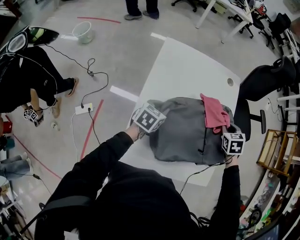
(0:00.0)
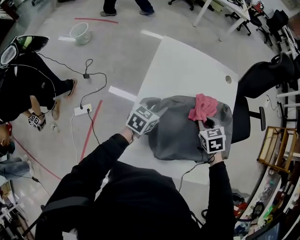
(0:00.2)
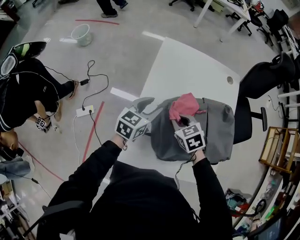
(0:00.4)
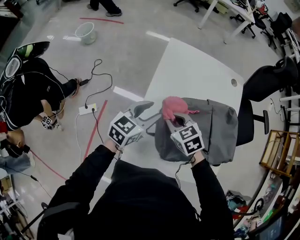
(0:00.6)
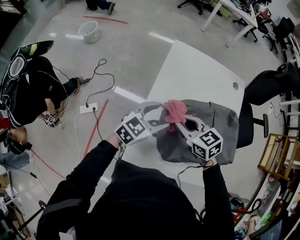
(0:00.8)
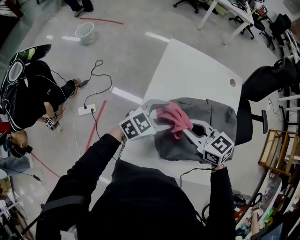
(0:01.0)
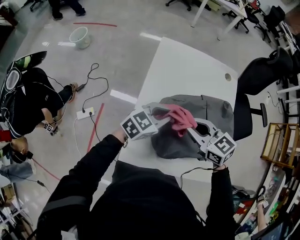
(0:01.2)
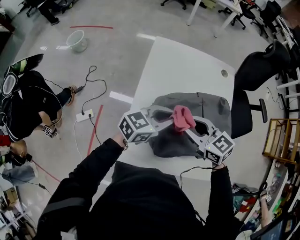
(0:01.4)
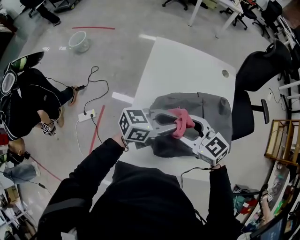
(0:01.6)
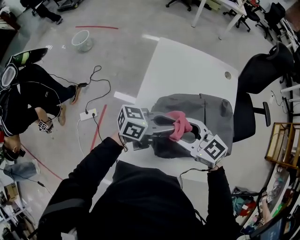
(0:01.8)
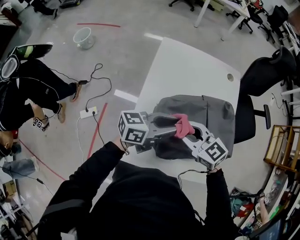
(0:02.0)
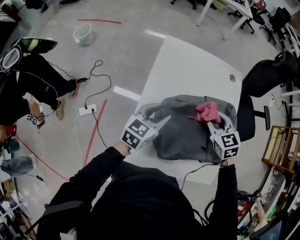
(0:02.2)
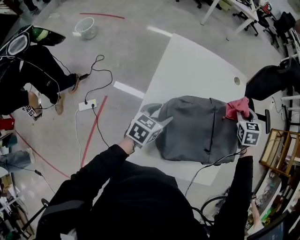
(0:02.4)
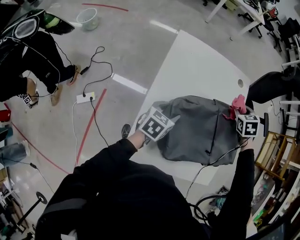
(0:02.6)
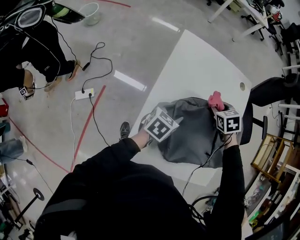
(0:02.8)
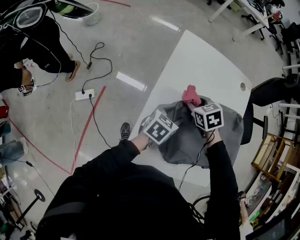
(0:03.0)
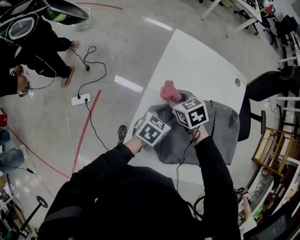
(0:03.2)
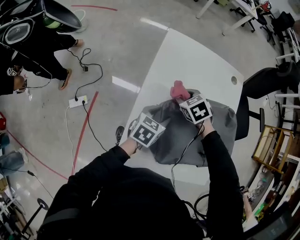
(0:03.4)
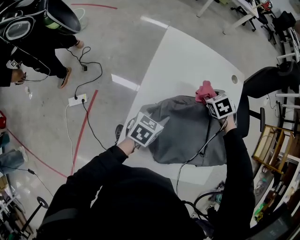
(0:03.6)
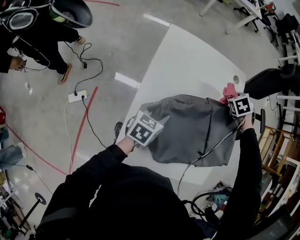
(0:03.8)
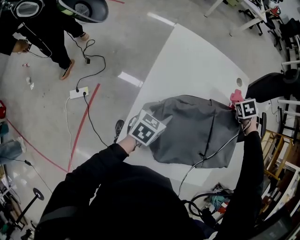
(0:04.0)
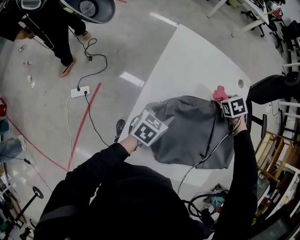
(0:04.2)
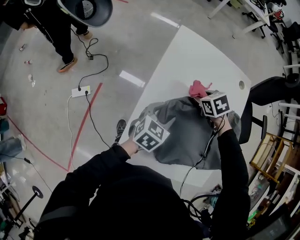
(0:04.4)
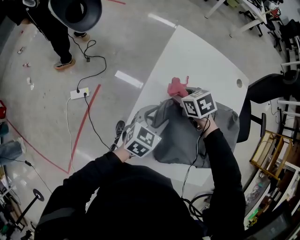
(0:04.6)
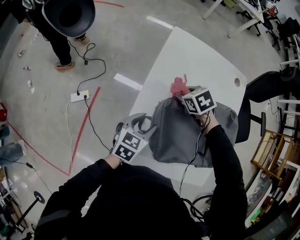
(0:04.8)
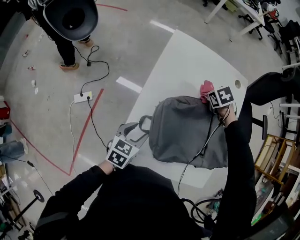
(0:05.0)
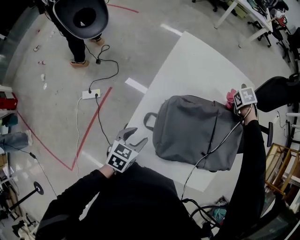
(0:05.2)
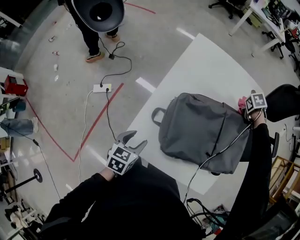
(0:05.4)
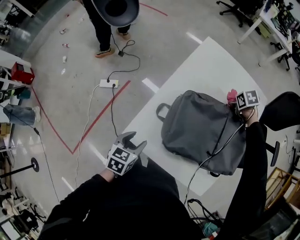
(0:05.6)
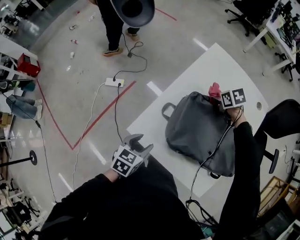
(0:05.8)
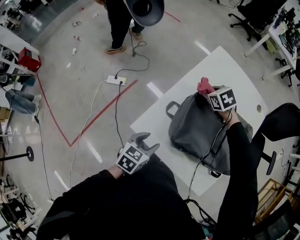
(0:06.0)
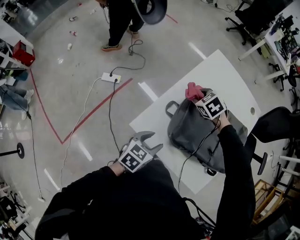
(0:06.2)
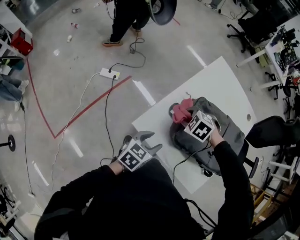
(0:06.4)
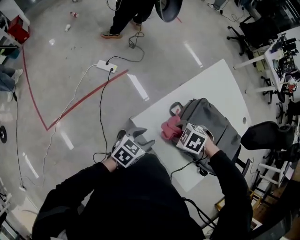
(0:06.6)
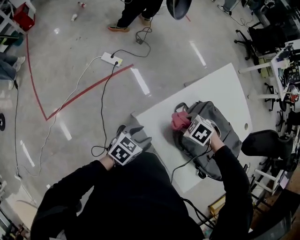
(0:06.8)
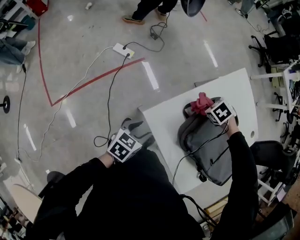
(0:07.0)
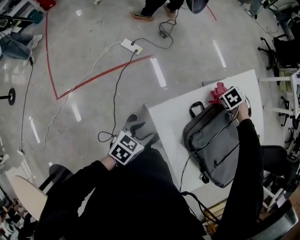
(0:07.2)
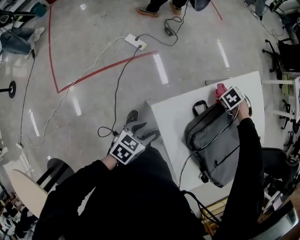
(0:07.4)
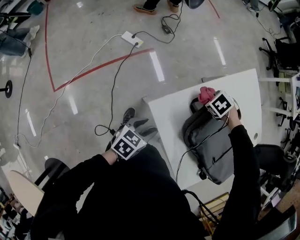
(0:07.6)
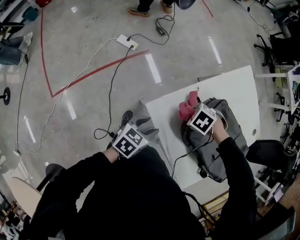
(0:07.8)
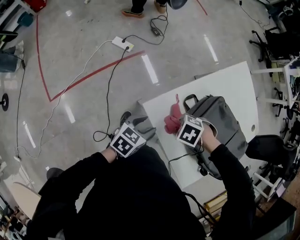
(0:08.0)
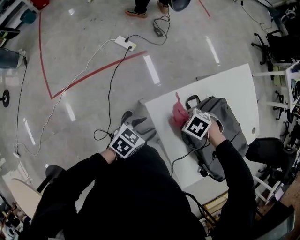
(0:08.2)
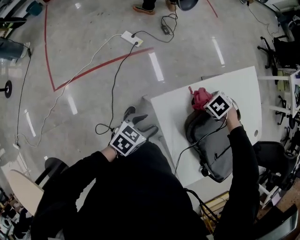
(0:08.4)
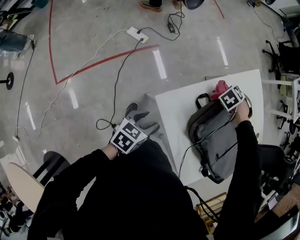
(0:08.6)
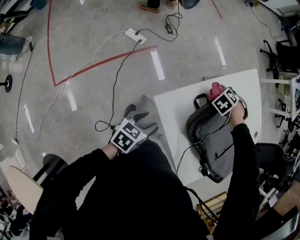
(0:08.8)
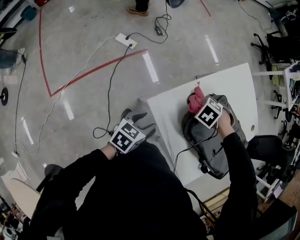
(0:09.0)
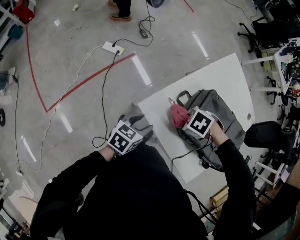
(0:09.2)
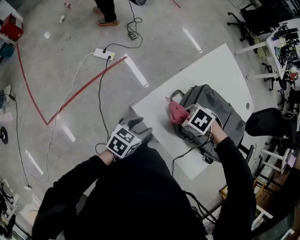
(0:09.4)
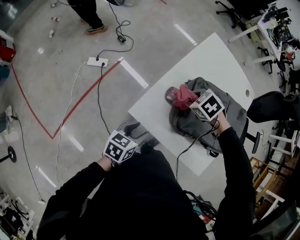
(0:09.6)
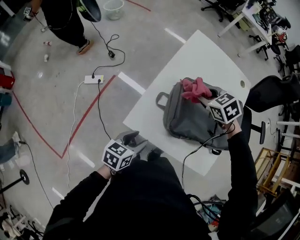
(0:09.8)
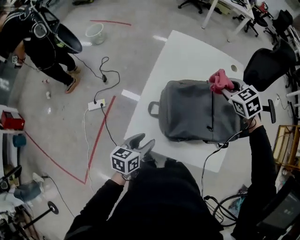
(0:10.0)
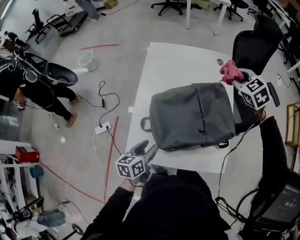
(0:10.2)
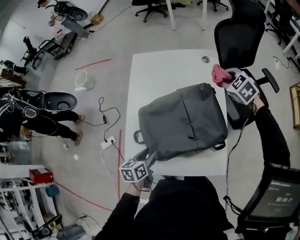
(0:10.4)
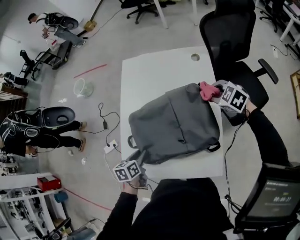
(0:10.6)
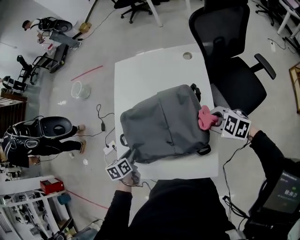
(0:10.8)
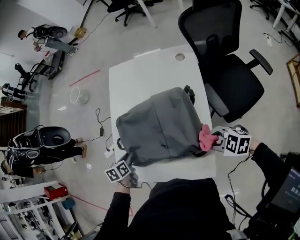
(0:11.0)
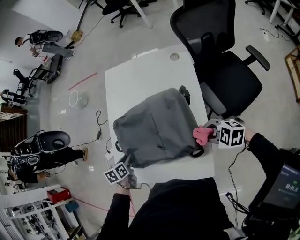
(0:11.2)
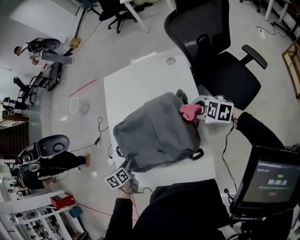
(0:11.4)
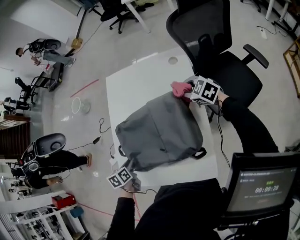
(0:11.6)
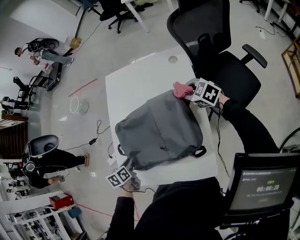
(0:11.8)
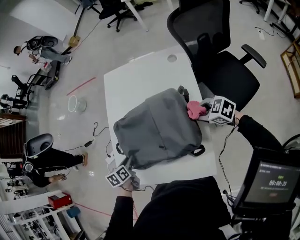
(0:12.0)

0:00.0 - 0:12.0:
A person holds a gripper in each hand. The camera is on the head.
0:00.0 - 0:01.6: The left gripper travels upward by approximately 15 cm, angles its fingers upward, by approximately 40 degrees, and opens, then closes once more, while the right gripper moves some 25 cm, tips its fingers upward by roughly 30 degrees, and opens up.
0:01.6 - 0:03.0: The left gripper heads downward, covering about 15 cm, angles its fingers downward, by roughly 30 degrees, and opens up; the right gripper changes place by about 20 cm, tips its fingers downward by approximately 30 degrees, and closes.
0:04.4 - 0:06.0: The right gripper changes its angle by approximately 20 degrees. The left gripper ends up some 30 cm from where it was, and changes its angle by about 30 degrees.
0:06.0 - 0:07.6: The right gripper angles its fingers downward, by about 30 degrees. The left gripper moves roughly 10 cm, and changes its angle by about 20 degrees.
0:09.0 - 0:10.4: The left gripper shifts by approximately 25 cm; the right gripper ends up some 50 cm from where it was, and angles its fingers upward, by roughly 40 degrees.
0:10.4 - 0:12.0: The left gripper ends up roughly 5 cm from where it was; the right gripper goes roughly 15 cm downward, and changes its angle by about 40 degrees.

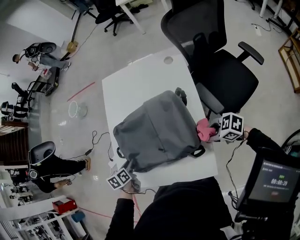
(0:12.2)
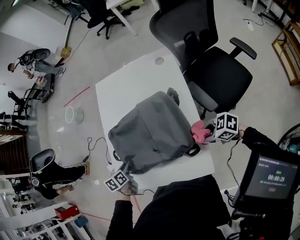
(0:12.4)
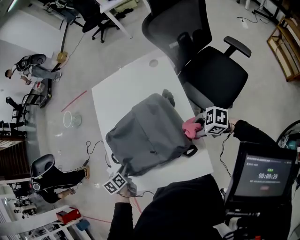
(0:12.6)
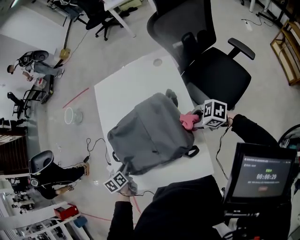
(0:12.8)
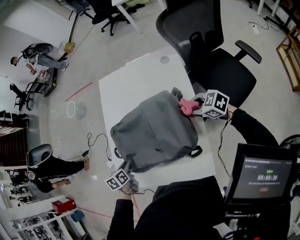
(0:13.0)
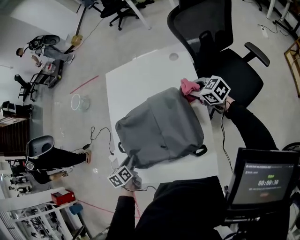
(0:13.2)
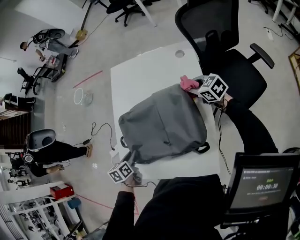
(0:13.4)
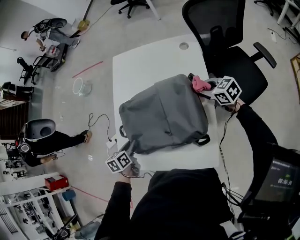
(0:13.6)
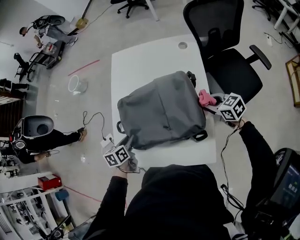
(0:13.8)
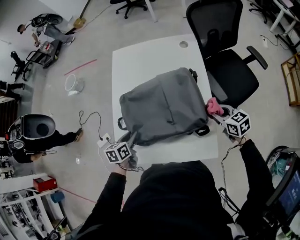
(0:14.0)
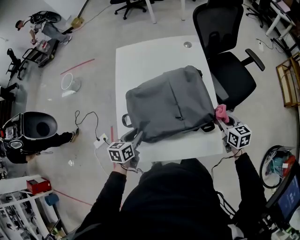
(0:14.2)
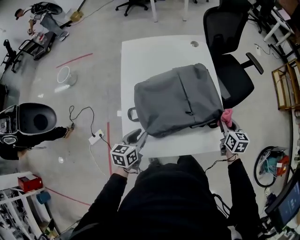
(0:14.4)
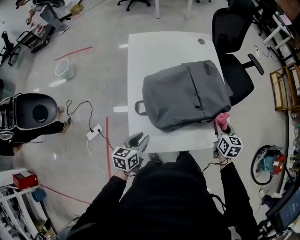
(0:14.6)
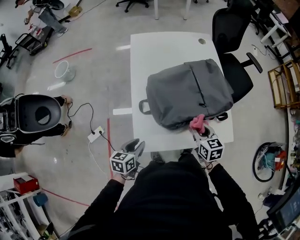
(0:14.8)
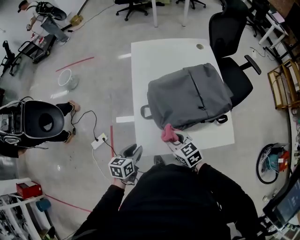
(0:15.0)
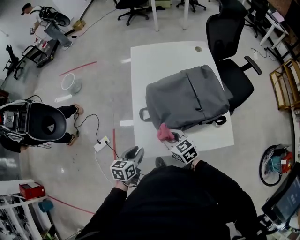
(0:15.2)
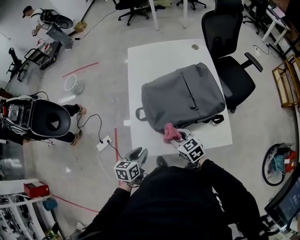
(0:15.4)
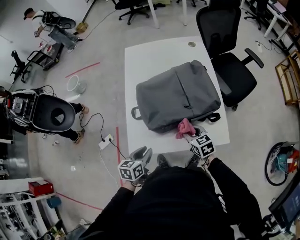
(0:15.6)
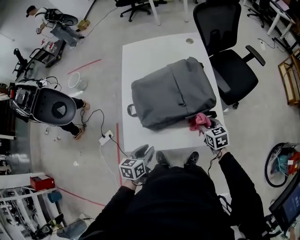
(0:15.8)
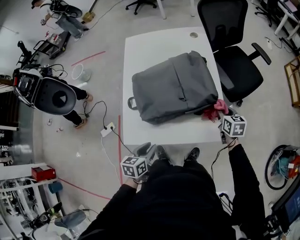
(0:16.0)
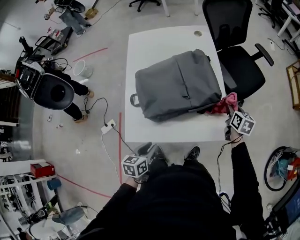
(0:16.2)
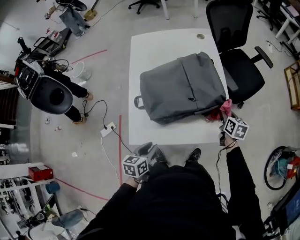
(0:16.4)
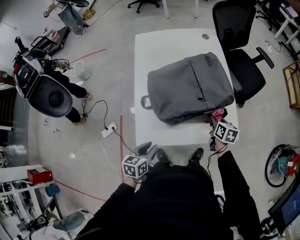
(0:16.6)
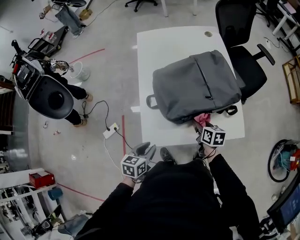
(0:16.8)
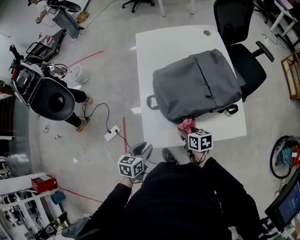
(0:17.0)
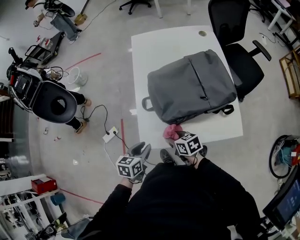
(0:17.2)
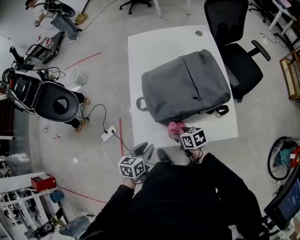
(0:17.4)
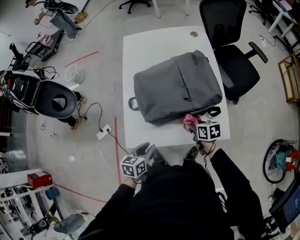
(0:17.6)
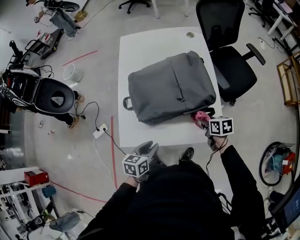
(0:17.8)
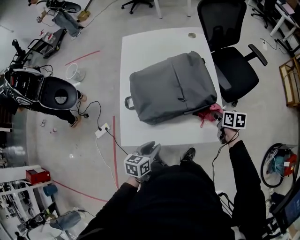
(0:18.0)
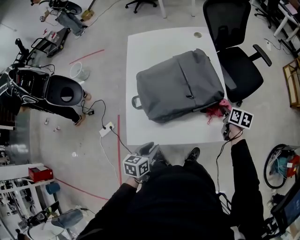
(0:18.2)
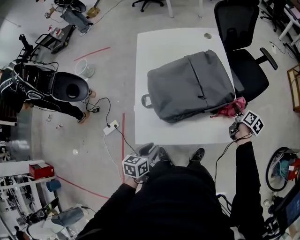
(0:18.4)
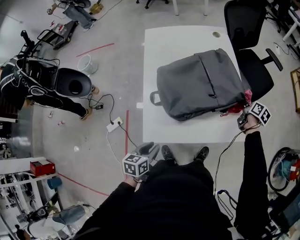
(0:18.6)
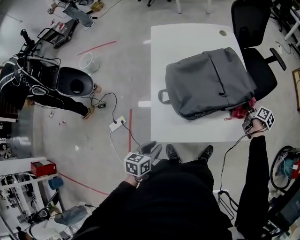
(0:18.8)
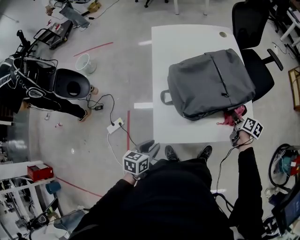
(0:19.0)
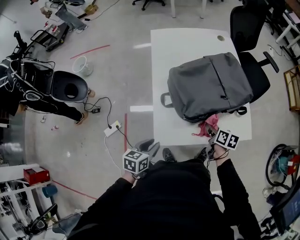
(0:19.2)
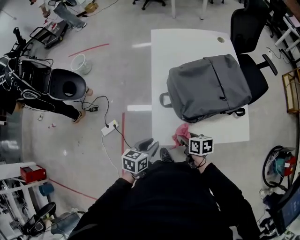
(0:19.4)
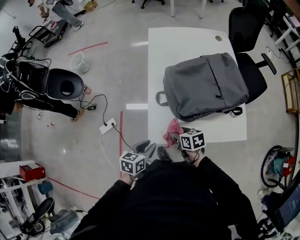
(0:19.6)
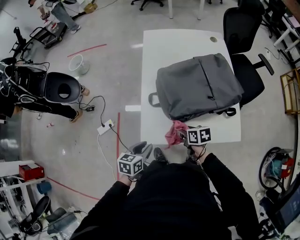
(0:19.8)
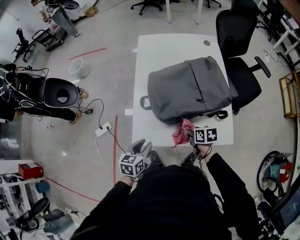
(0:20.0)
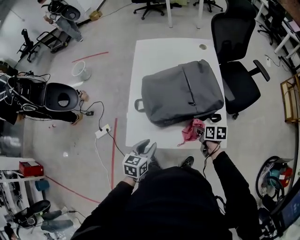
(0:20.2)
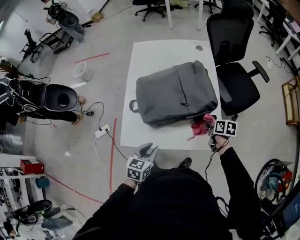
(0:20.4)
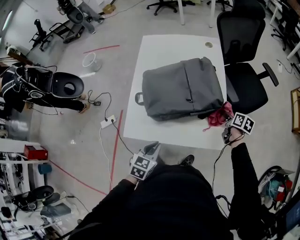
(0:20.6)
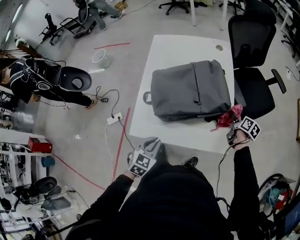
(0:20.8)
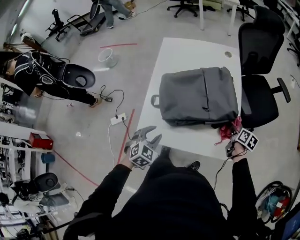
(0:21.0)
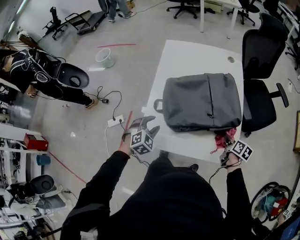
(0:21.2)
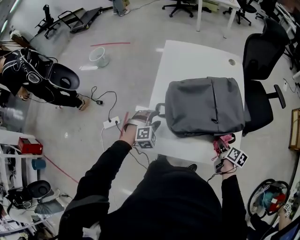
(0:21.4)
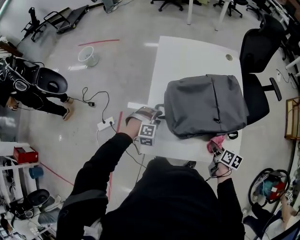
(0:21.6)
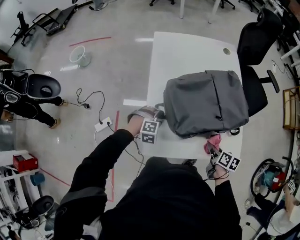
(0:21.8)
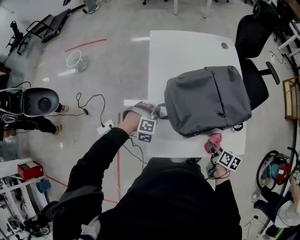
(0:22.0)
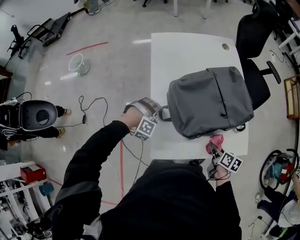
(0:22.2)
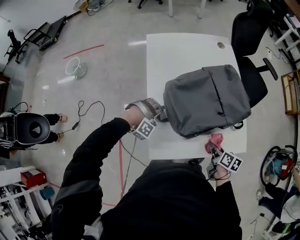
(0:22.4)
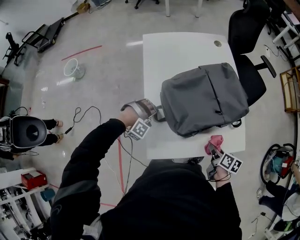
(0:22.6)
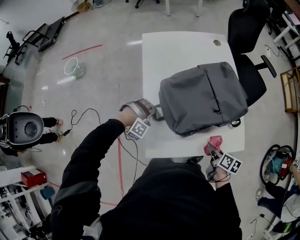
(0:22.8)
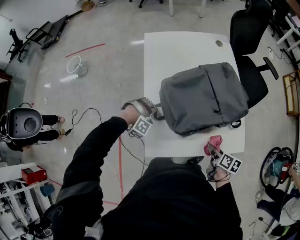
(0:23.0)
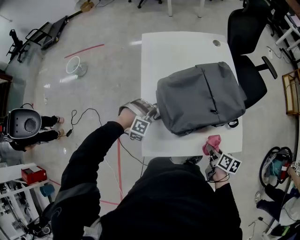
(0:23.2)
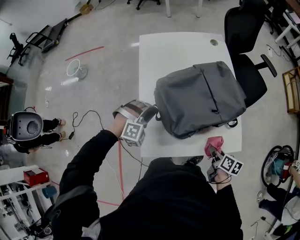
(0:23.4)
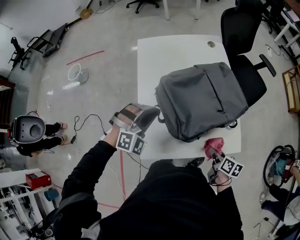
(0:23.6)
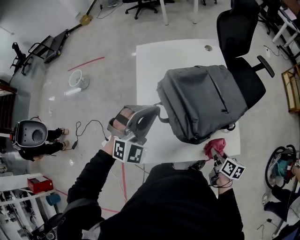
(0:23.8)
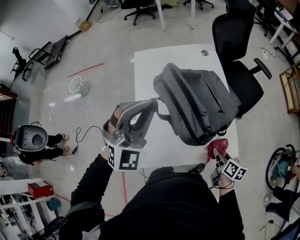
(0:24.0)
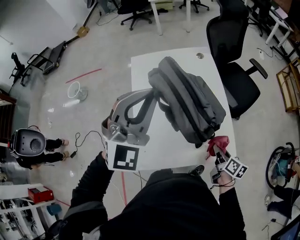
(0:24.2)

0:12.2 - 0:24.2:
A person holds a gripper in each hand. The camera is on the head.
0:12.2 - 0:13.8: The right gripper goes about 10 cm forward, and turns by roughly 30 degrees.
0:13.8 - 0:15.2: The left gripper moves about 20 cm, and rotates some 20 degrees. Meanwhile the right gripper shifts by about 40 cm.
0:15.2 - 0:16.6: The left gripper shifts some 10 cm to the right. The right gripper goes roughly 25 cm to the right, and changes its angle by about 50 degrees.
0:16.6 - 0:18.2: The right gripper moves about 25 cm to the left and comes back. The left gripper travels to the right by approximately 10 cm.
0:18.2 - 0:19.8: The right gripper ends up roughly 35 cm from where it was, and changes its angle by about 30 degrees, while the left gripper changes place by approximately 15 cm.
0:19.8 - 0:21.2: The right gripper goes roughly 30 cm to the right, and swivels approximately 30 degrees. Meanwhile the left gripper shifts roughly 15 cm forward and to the right, and rotates around the line of its fingers by roughly 60 degrees, clockwise from behind.
0:21.2 - 0:22.6: The left gripper shifts roughly 15 cm forward, downward and to the left, and twists about 80 degrees clockwise, seen from behind. The right gripper travels to the left and backward by approximately 20 cm.
0:22.6 - 0:24.2: The left gripper shifts approximately 50 cm upward, and tips its fingers upward by approximately 60 degrees. Meanwhile the right gripper travels to the right and upward by some 10 cm.
